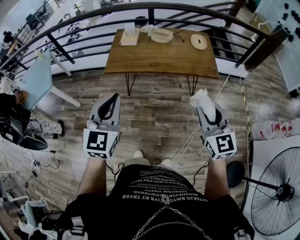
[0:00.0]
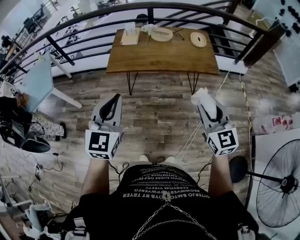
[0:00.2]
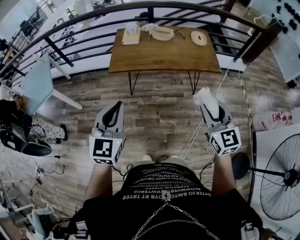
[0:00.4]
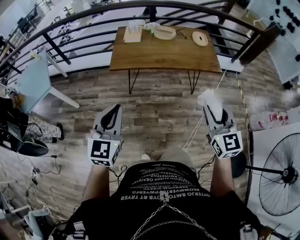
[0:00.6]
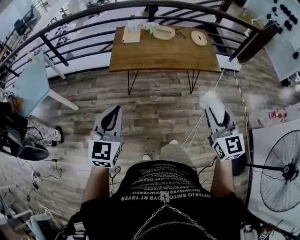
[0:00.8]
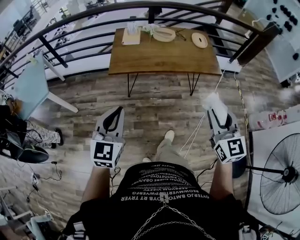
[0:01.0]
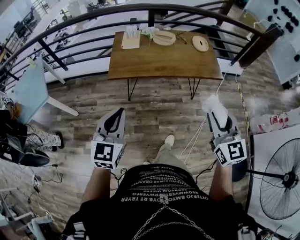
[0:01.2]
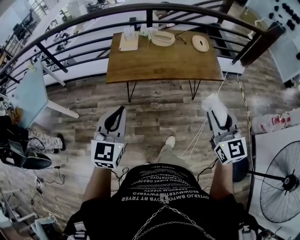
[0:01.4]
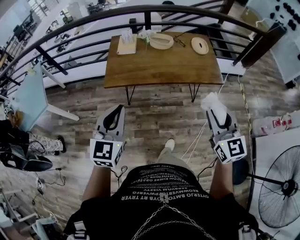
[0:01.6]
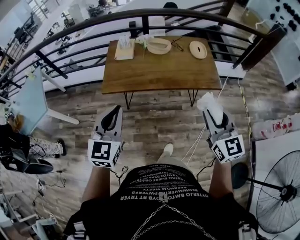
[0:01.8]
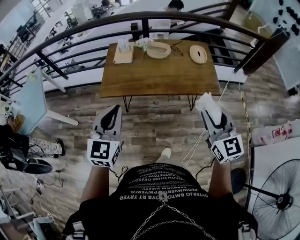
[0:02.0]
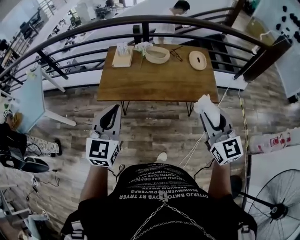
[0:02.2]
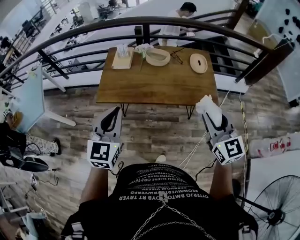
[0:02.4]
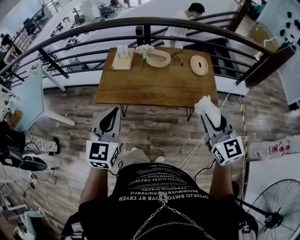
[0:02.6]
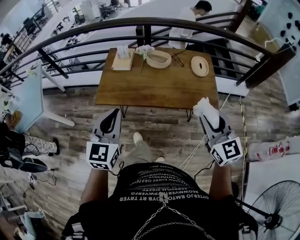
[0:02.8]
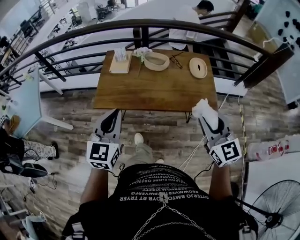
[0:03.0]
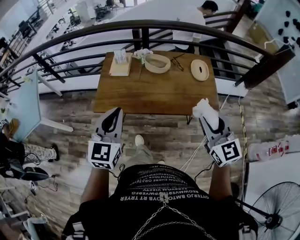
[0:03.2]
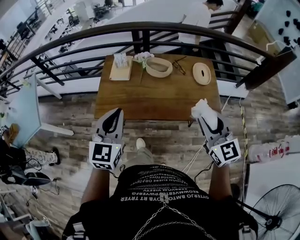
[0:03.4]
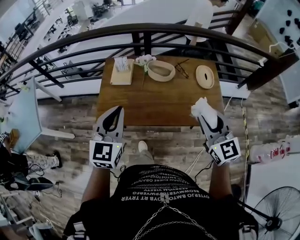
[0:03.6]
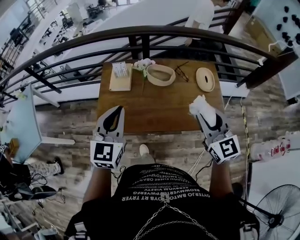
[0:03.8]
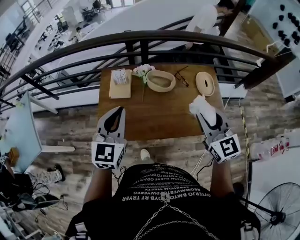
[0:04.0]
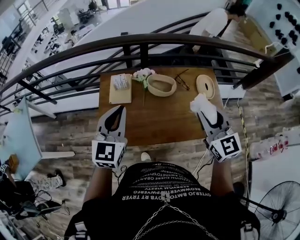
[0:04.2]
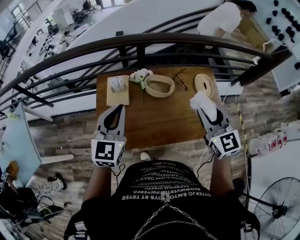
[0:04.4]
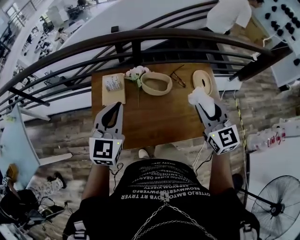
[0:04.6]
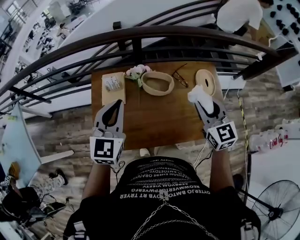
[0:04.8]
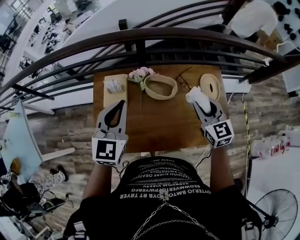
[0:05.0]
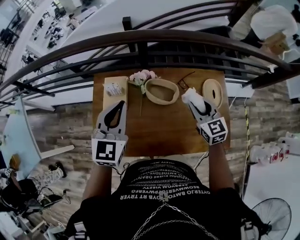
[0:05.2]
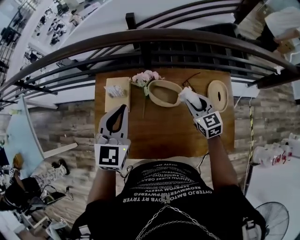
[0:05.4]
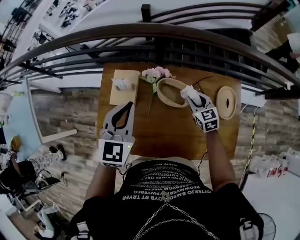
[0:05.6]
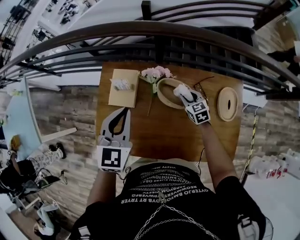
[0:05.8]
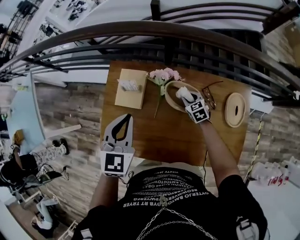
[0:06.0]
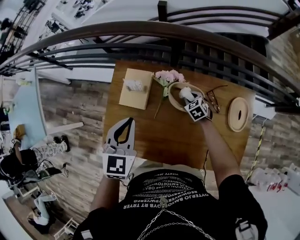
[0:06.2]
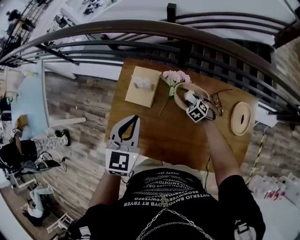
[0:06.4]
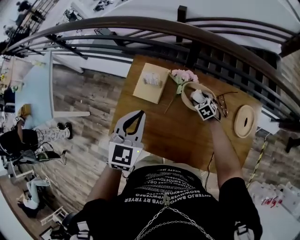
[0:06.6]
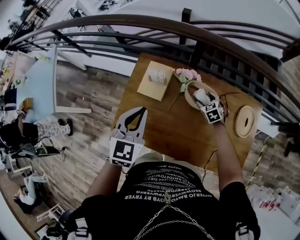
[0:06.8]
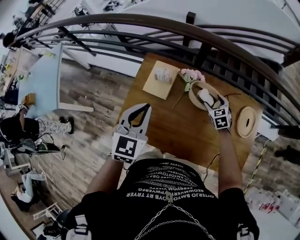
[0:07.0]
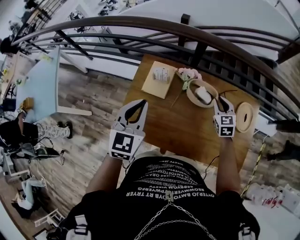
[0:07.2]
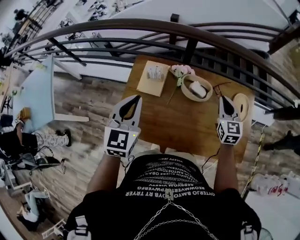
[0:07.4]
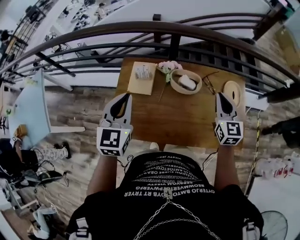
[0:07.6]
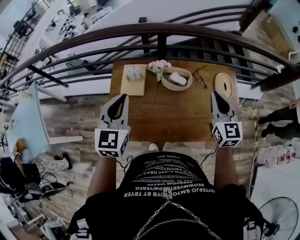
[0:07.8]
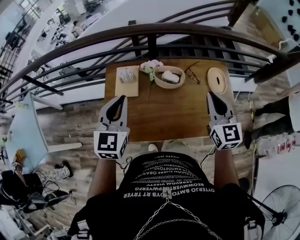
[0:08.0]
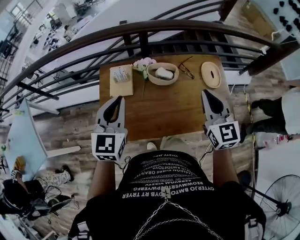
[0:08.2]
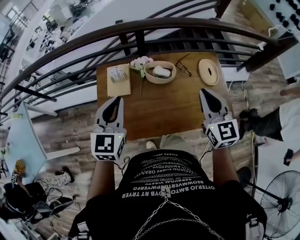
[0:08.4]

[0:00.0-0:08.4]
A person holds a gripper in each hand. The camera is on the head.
0:00.0 to 0:01.4: The left gripper is displaced to the left, forward and downward by some 10 cm; the right gripper travels to the left by about 5 cm.
0:01.4 to 0:02.8: Both grippers move forward and to the right, some 20 cm.
0:02.8 to 0:04.2: Both grippers move forward, roughly 30 cm.
0:04.2 to 0:05.6: The left gripper goes roughly 20 cm forward and downward. The right gripper heads downward and forward, covering some 40 cm, and rotates about 30 degrees.
0:05.6 to 0:07.0: The left gripper shifts approximately 10 cm to the left and backward; the right gripper moves some 20 cm downward and comes back, and opens its fingers.
0:07.0 to 0:08.4: The left gripper moves backward, approximately 5 cm. The right gripper moves upward and backward, about 40 cm, tips its fingers upward by approximately 40 degrees, and closes its fingers.

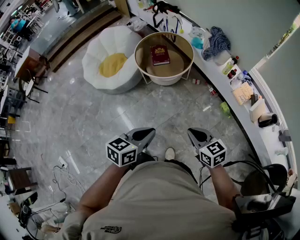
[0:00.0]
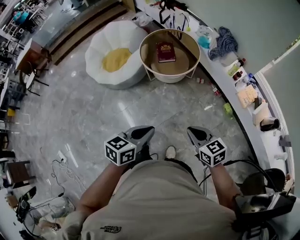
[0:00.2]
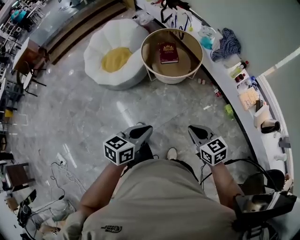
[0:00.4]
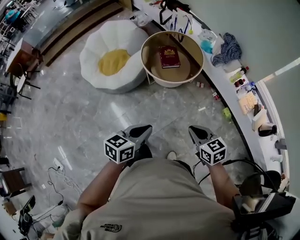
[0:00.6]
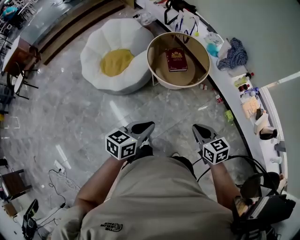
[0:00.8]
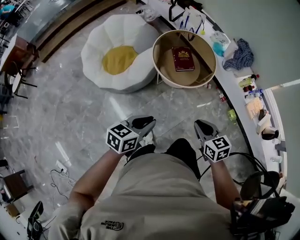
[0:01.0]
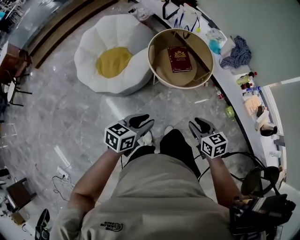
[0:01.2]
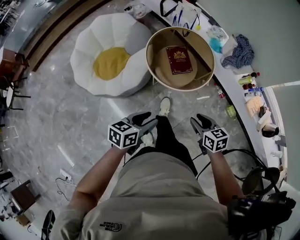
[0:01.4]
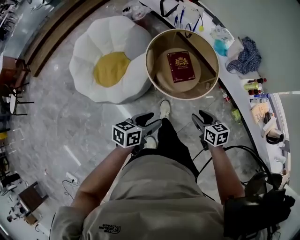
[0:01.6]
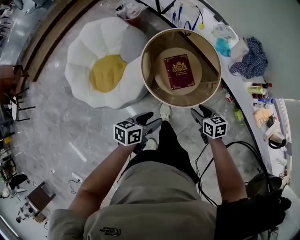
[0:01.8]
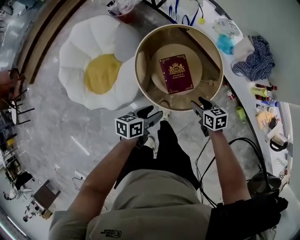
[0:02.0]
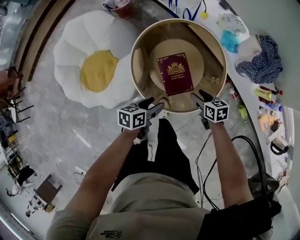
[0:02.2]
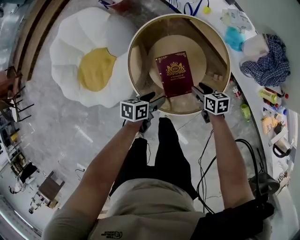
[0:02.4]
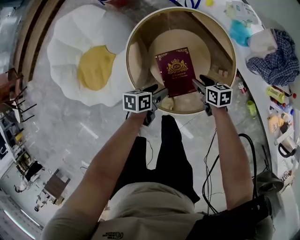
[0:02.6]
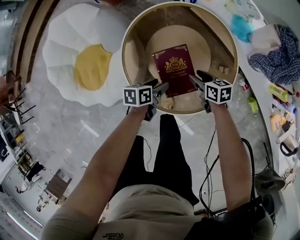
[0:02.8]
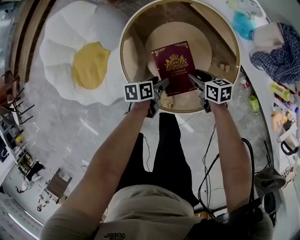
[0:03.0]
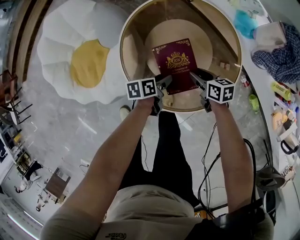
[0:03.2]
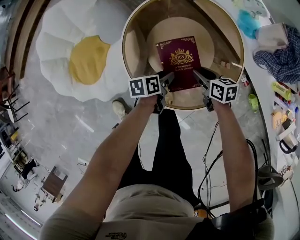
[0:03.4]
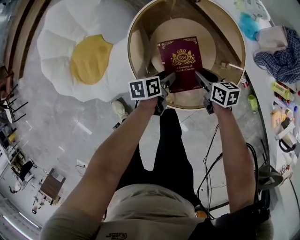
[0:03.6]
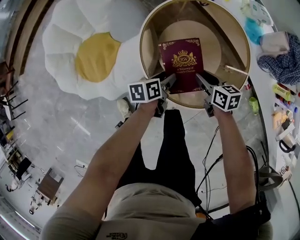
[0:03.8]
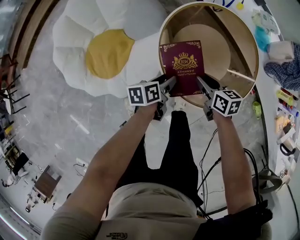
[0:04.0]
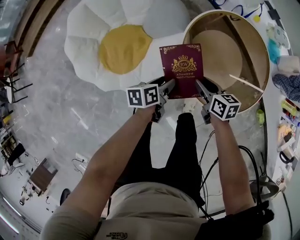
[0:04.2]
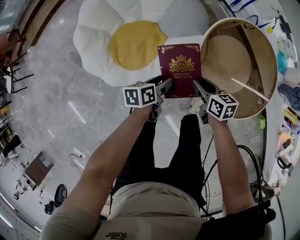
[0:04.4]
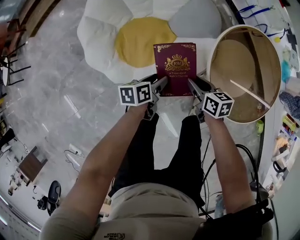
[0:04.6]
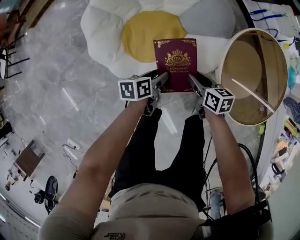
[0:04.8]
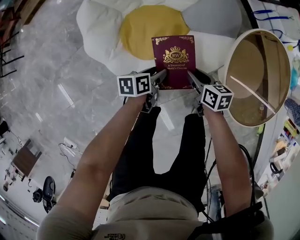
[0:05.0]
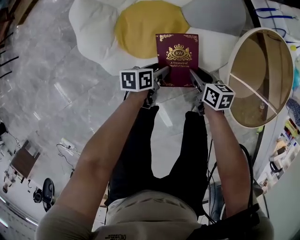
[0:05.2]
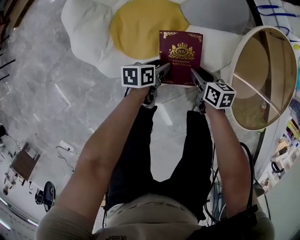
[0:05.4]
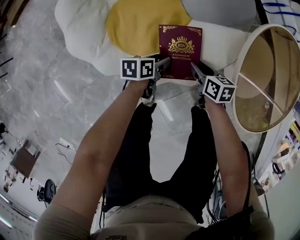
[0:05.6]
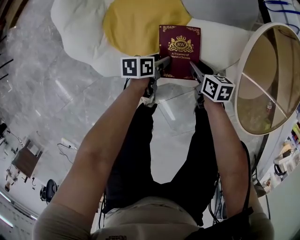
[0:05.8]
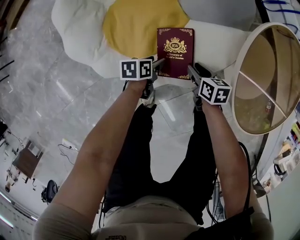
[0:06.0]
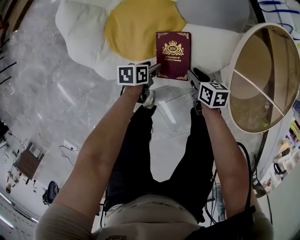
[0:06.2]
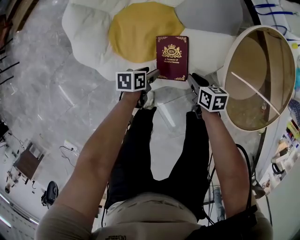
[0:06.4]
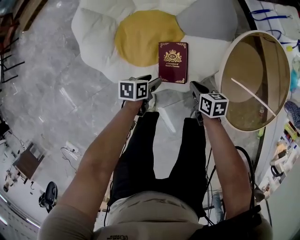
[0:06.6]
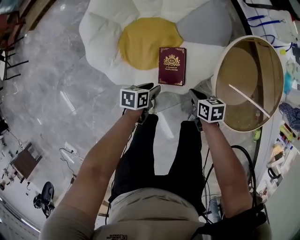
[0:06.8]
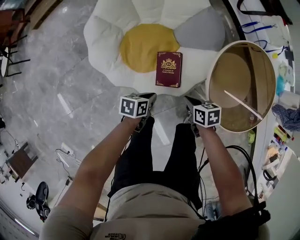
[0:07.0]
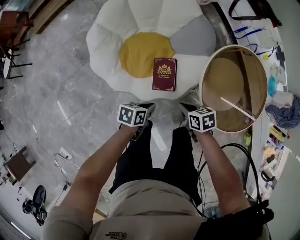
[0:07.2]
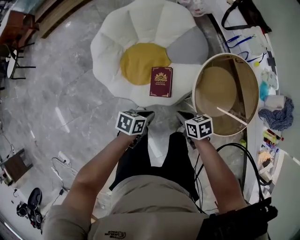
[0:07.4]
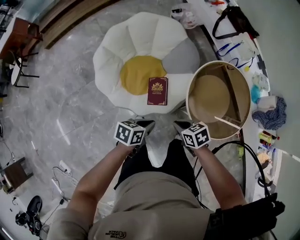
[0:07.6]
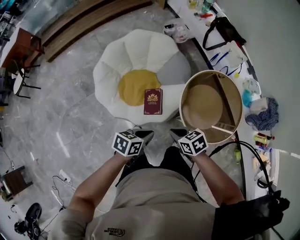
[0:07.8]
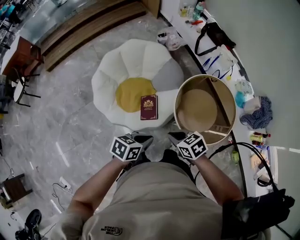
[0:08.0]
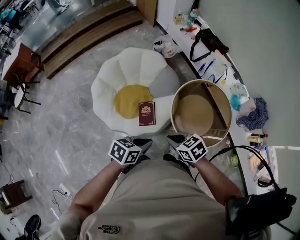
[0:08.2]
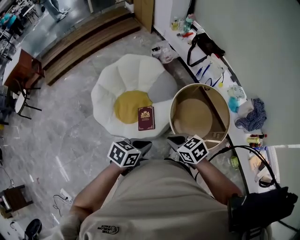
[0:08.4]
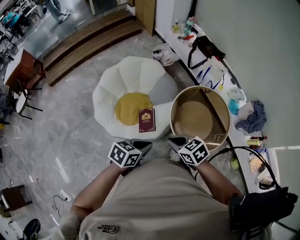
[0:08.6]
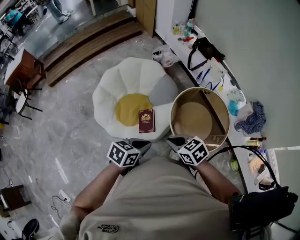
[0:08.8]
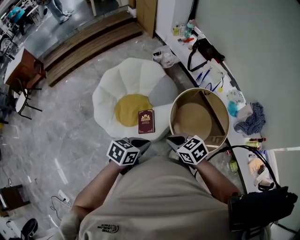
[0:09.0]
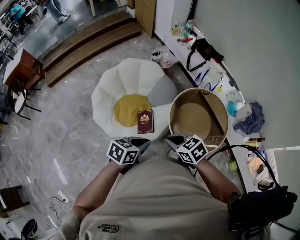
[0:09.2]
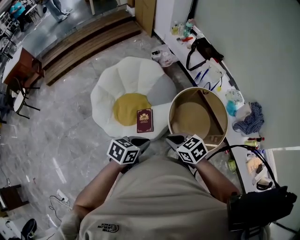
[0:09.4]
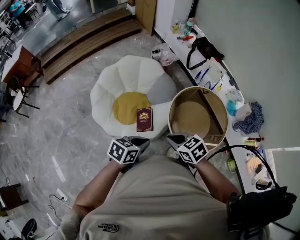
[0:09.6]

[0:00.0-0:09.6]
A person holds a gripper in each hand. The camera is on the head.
0:00.0 to 0:01.6: Both grippers are carried forward and to the left, roughly 50 cm. The left gripper opens up; the right gripper swivels roughly 20 degrees, and opens its fingers.
0:01.6 to 0:03.2: The right gripper is displaced forward and downward by roughly 40 cm, and turns by about 20 degrees; the left gripper travels downward and forward by about 50 cm, and swivels about 30 degrees.
0:03.2 to 0:04.8: The pair of grippers is taken to the left, some 50 cm.
0:04.8 to 0:06.4: Both grippers move downward, some 15 cm.
0:06.4 to 0:08.0: The two grippers go approximately 50 cm upward. The right gripper rotates approximately 30 degrees; the left gripper rotates approximately 30 degrees, and closes up.
0:08.0 to 0:09.6: The grippers both shift upward by roughly 5 cm.

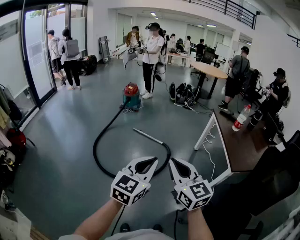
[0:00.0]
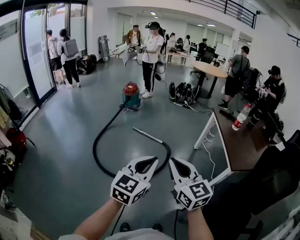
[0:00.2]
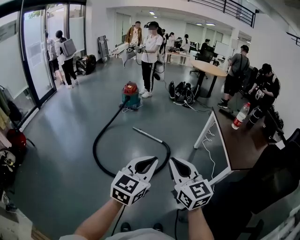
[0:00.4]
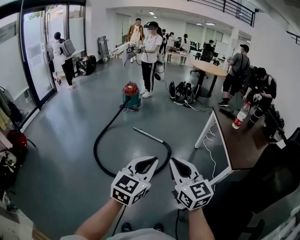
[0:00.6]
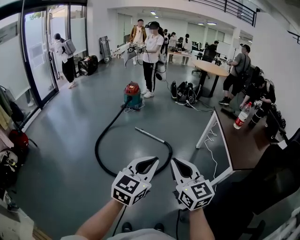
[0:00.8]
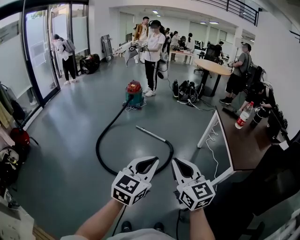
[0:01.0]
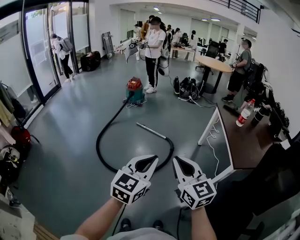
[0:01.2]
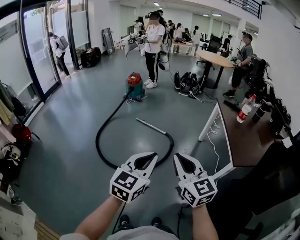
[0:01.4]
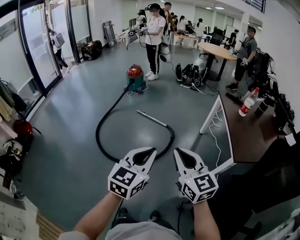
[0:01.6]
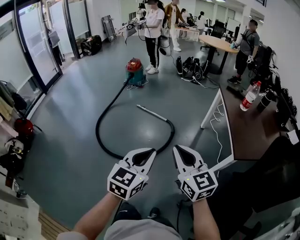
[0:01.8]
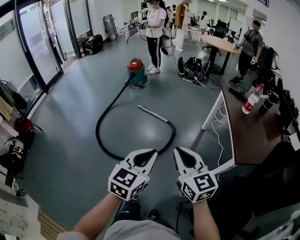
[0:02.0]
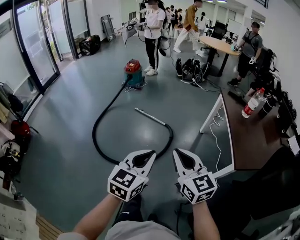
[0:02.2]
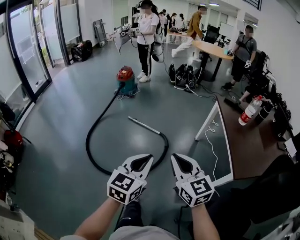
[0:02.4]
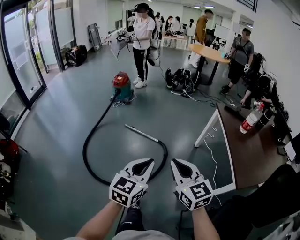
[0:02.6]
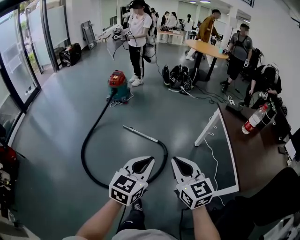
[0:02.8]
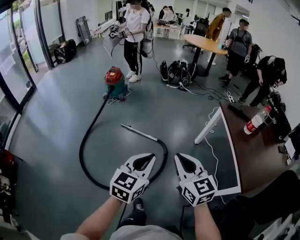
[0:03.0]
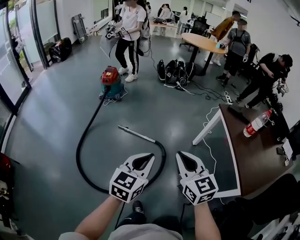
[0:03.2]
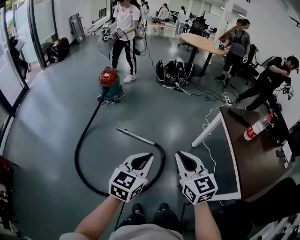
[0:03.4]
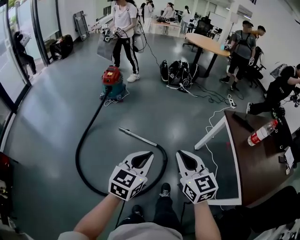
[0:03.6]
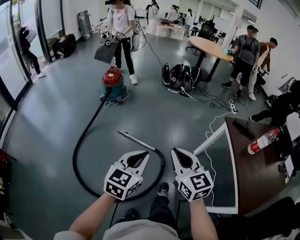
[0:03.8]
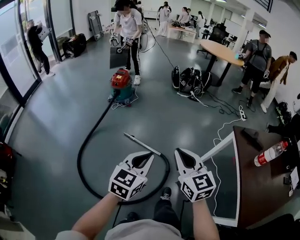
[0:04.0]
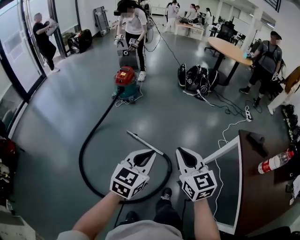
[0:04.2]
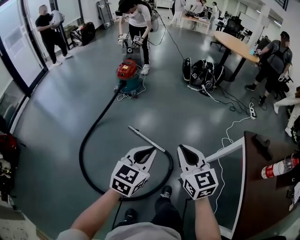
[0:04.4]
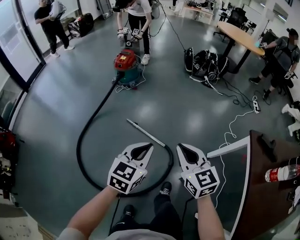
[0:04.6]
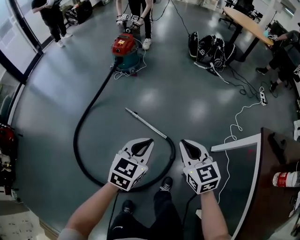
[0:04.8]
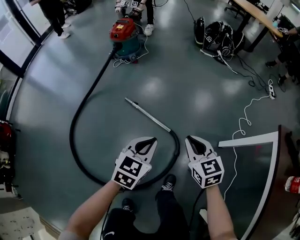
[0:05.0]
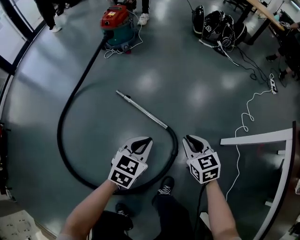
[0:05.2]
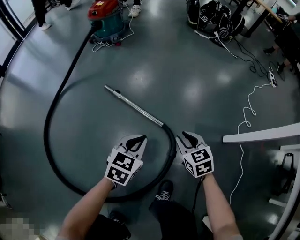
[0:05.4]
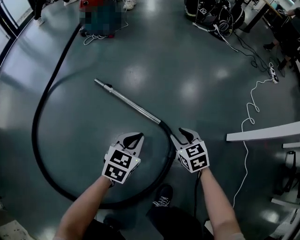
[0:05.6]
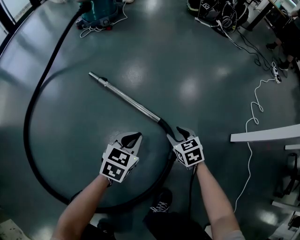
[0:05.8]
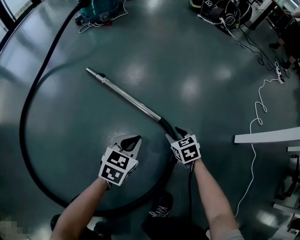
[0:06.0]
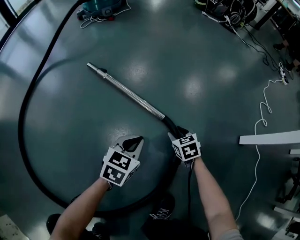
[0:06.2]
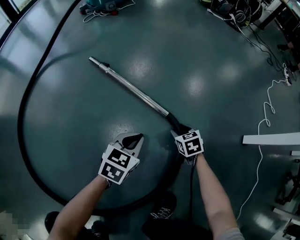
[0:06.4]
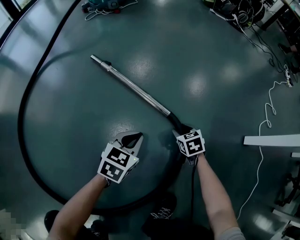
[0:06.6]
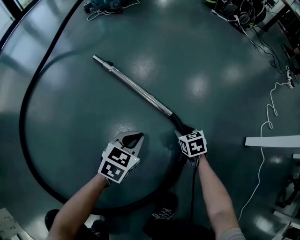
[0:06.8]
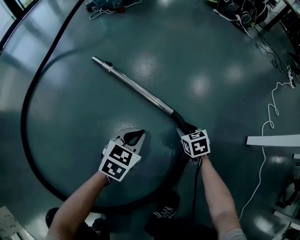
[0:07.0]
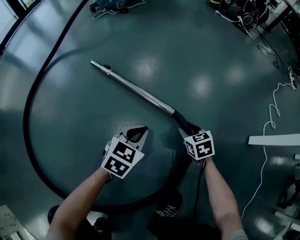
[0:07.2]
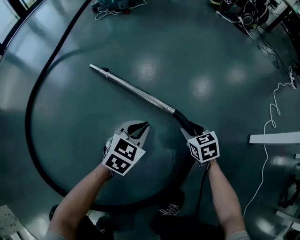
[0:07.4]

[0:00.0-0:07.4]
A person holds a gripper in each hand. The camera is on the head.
0:00.0 to 0:01.4: The right gripper travels to the right by some 5 cm. Meanwhile the left gripper moves approximately 5 cm.
0:01.4 to 0:03.0: Both grippers travel together forward, approximately 40 cm.
0:03.0 to 0:04.4: The two grippers go roughly 30 cm forward.
0:04.4 to 0:06.0: Both grippers travel together downward, roughly 80 cm. The left gripper swivels approximately 20 degrees. The right gripper tilts its fingers some 40 degrees downward, and opens its fingers.
0:06.0 to 0:07.4: The right gripper goes downward and returns, some 10 cm each way; the left gripper shifts by about 5 cm.
